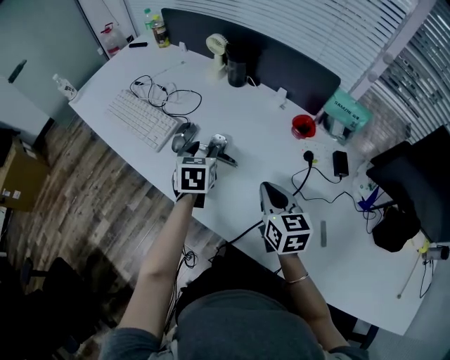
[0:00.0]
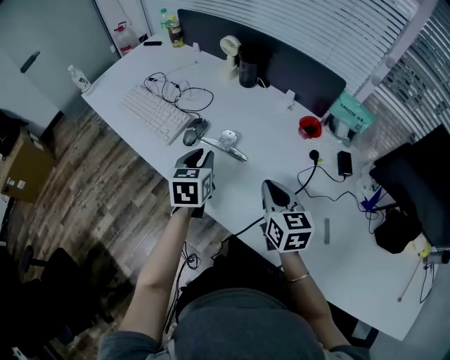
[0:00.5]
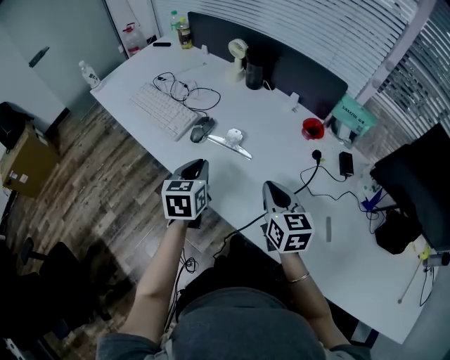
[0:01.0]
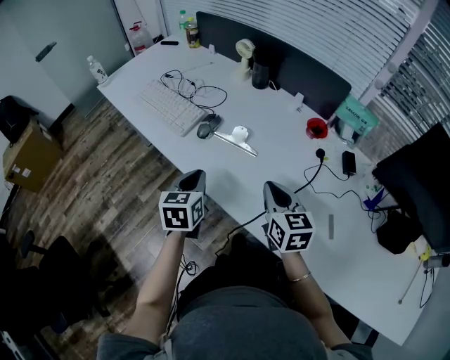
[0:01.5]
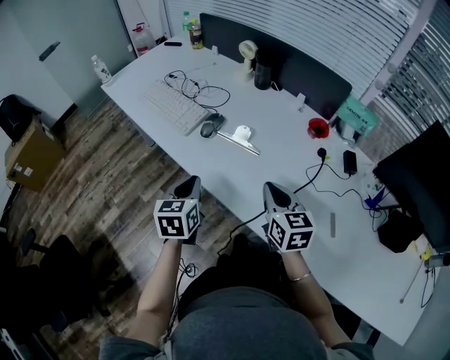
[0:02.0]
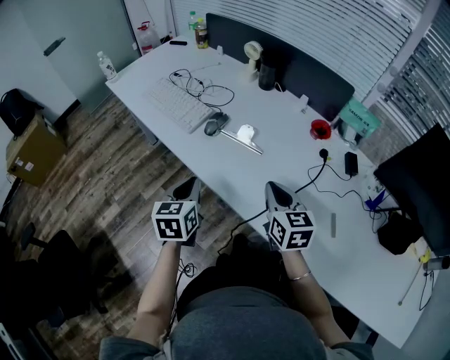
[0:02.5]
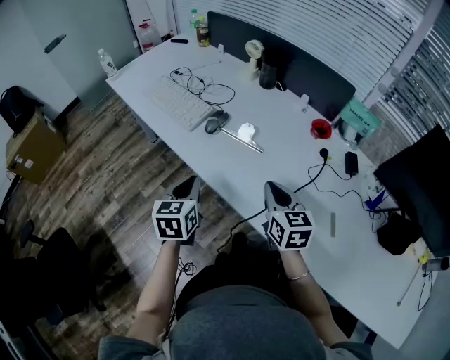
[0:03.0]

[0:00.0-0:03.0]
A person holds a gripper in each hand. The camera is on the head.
0:00.0 to 0:01.5: The right gripper is displaced backward by some 5 cm. Meanwhile the left gripper travels backward and to the left by about 20 cm, and closes its fingers.
0:01.5 to 0:03.0: The left gripper moves about 5 cm.

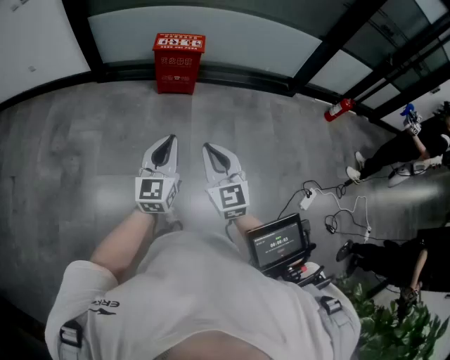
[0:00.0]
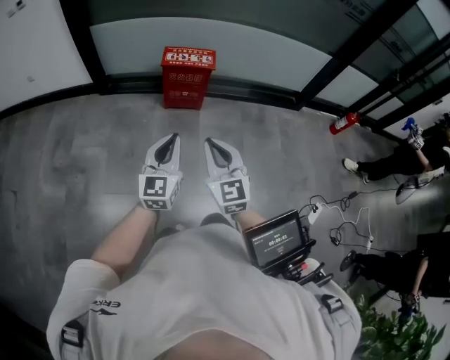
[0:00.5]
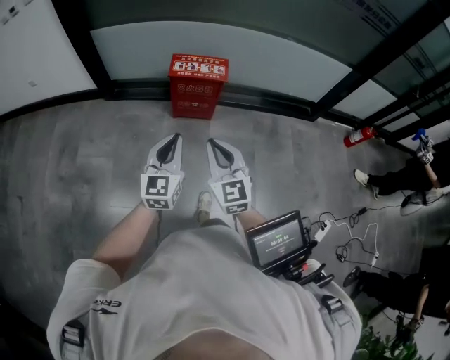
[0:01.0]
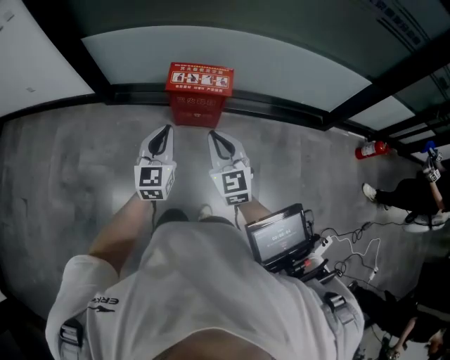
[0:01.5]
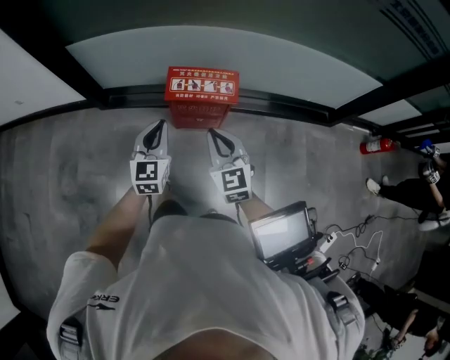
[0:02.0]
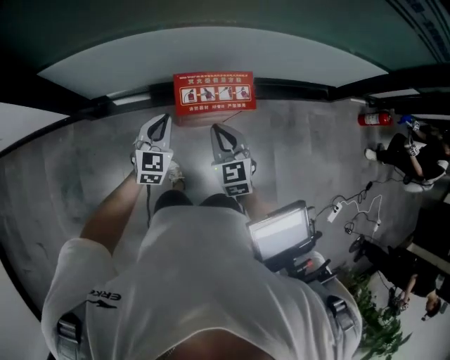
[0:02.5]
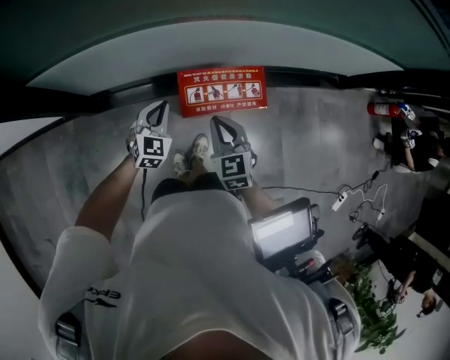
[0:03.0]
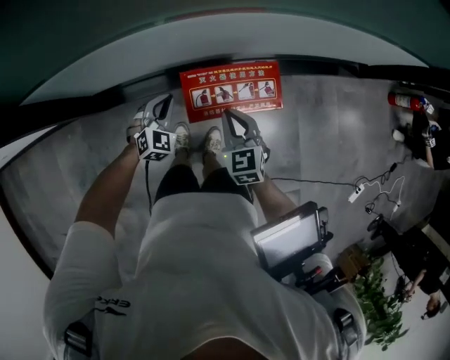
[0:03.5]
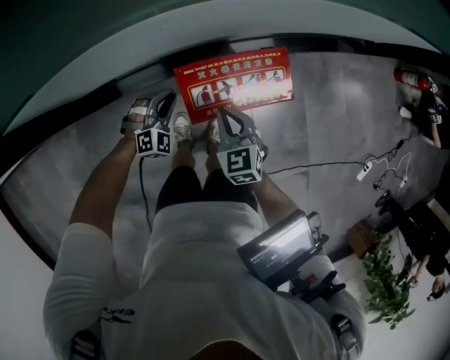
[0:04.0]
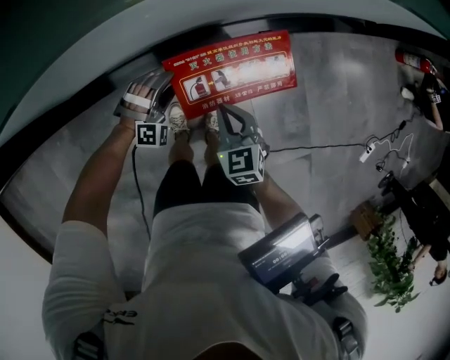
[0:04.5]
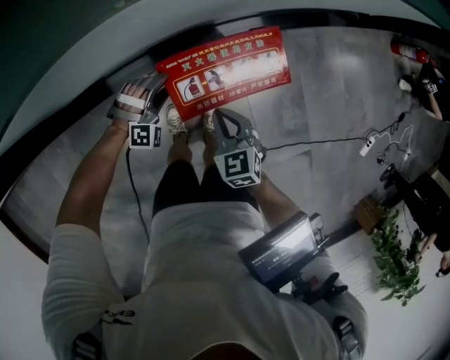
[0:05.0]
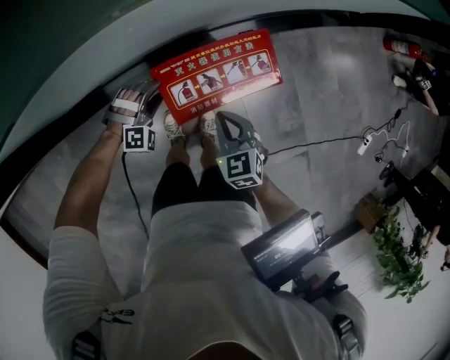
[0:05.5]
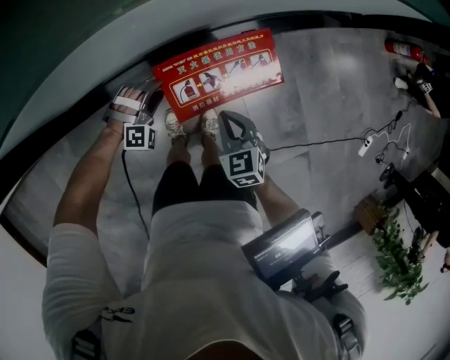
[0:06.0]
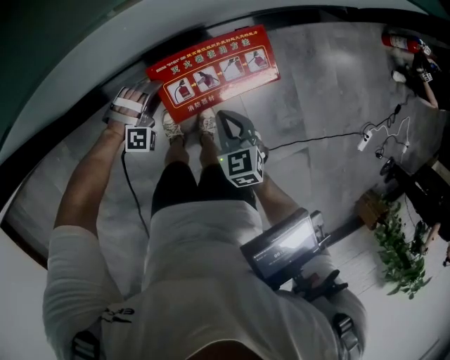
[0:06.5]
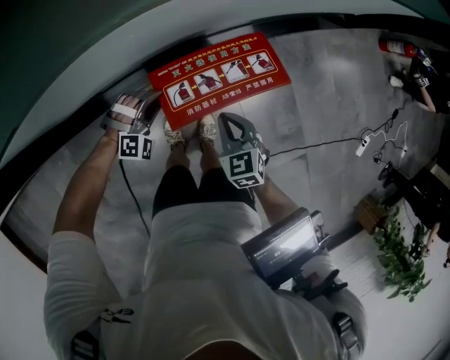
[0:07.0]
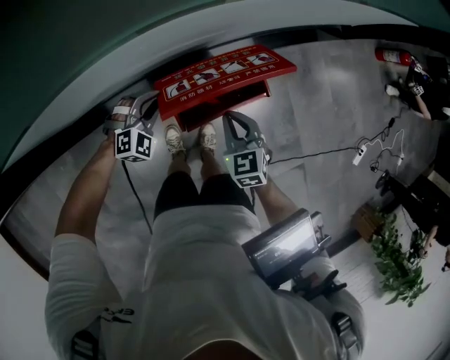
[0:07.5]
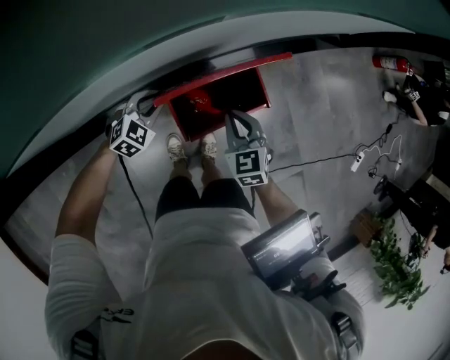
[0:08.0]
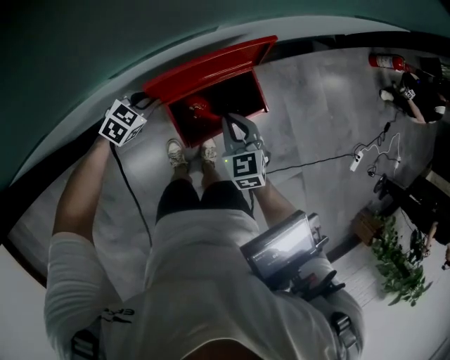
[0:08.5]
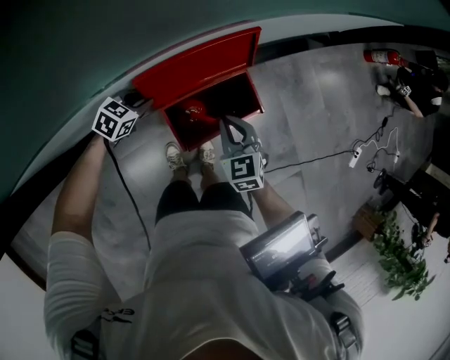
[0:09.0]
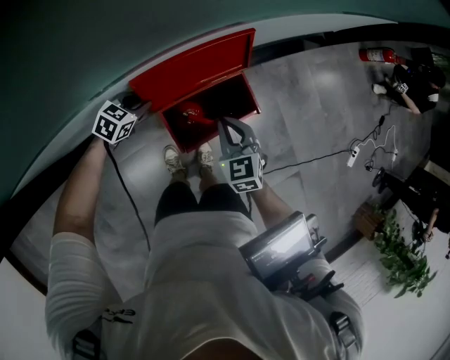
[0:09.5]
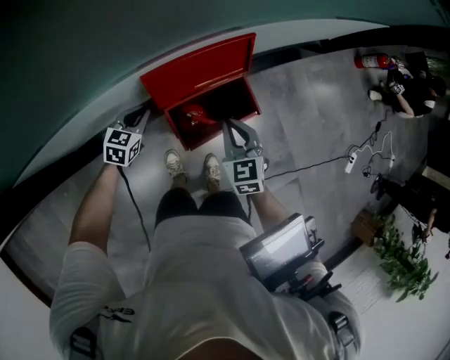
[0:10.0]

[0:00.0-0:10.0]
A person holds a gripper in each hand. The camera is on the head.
0:00.0 to 0:02.0: The two grippers travel together, forward, some 60 cm.
0:02.0 to 0:04.0: The left gripper goes roughly 40 cm forward and downward, and angles its fingers downward, by roughly 30 degrees, while the right gripper heads forward, downward and to the left, covering about 40 cm, and turns by some 30 degrees.
0:04.0 to 0:06.0: The left gripper turns by some 30 degrees, and opens. The right gripper moves approximately 5 cm.
0:06.0 to 0:08.0: The left gripper moves forward and upward, some 10 cm, rolls counterclockwise, seen from behind, by about 40 degrees, and closes its fingers; the right gripper moves forward, approximately 10 cm.
0:08.0 to 0:10.0: The right gripper travels upward by about 5 cm. The left gripper ends up some 5 cm from where it was, and changes its angle by roughly 30 degrees.

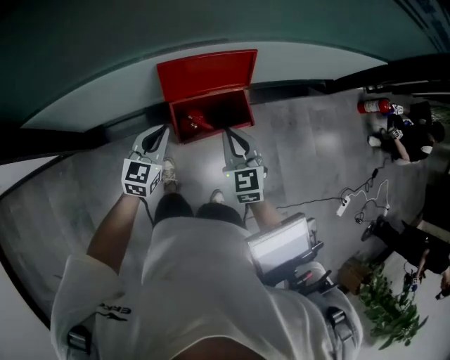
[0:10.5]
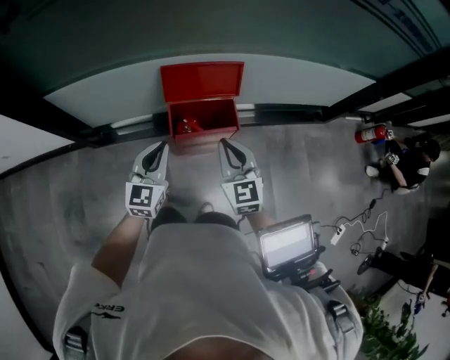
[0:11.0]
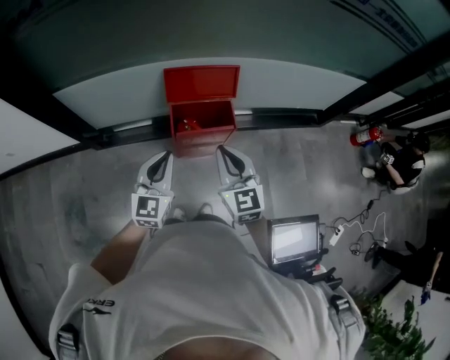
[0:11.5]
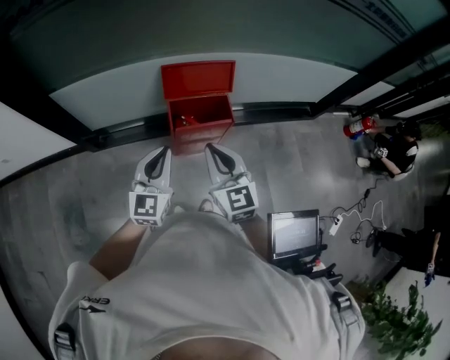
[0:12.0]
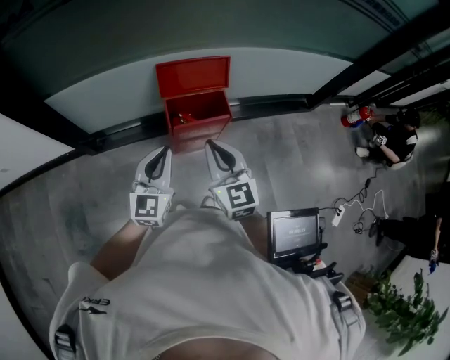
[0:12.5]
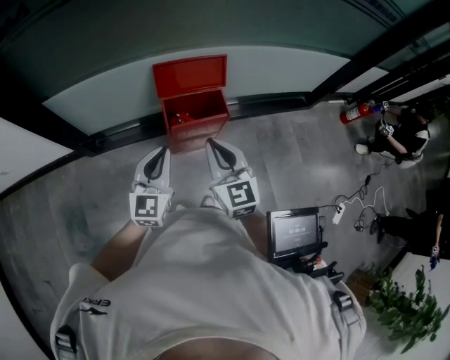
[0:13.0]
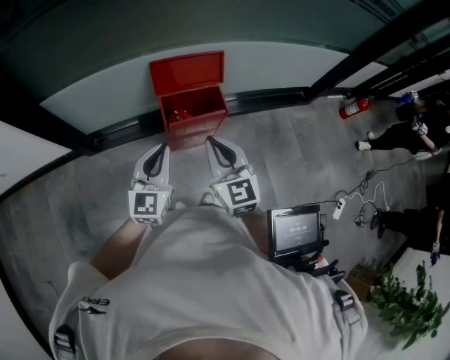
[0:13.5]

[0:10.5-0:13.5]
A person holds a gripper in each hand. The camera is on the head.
0:10.5 to 0:12.0: The two grippers go some 25 cm backward and upward. The left gripper swivels approximately 20 degrees; the right gripper swivels approximately 20 degrees.
0:12.0 to 0:13.5: The grippers stay close to where they were, moving slightly.

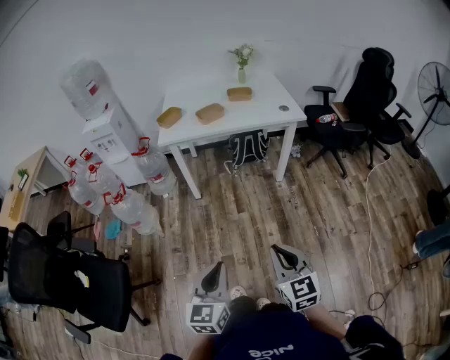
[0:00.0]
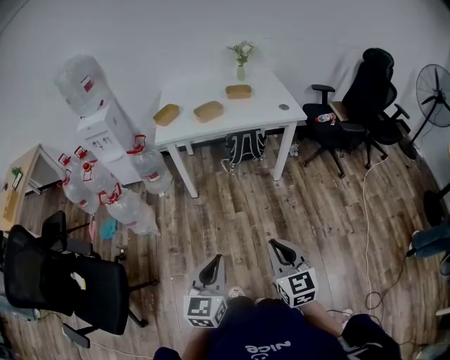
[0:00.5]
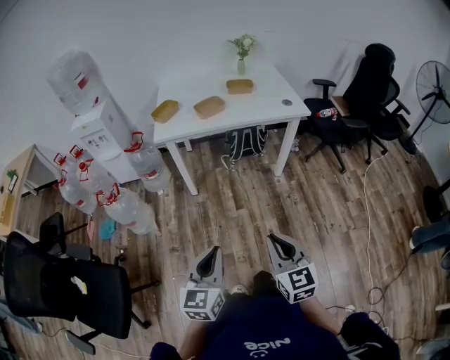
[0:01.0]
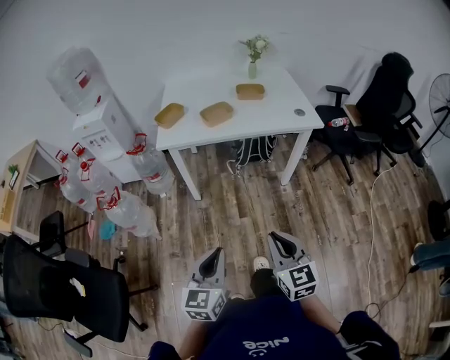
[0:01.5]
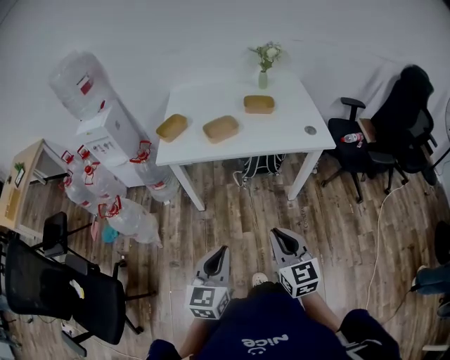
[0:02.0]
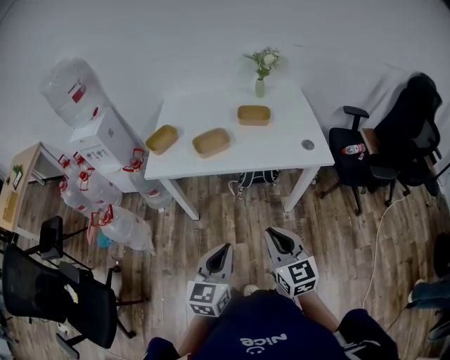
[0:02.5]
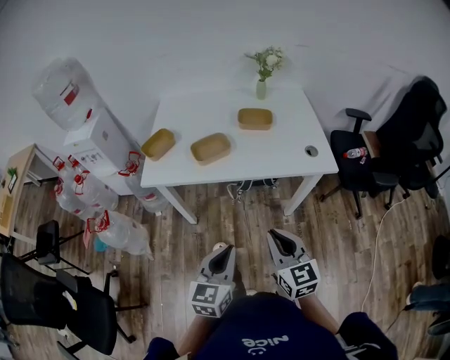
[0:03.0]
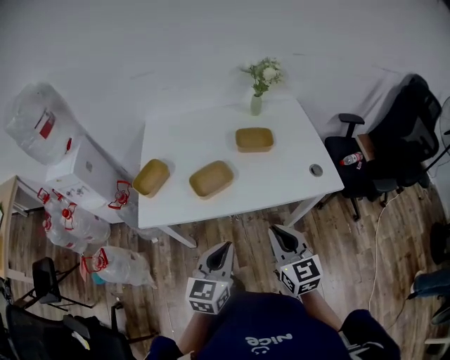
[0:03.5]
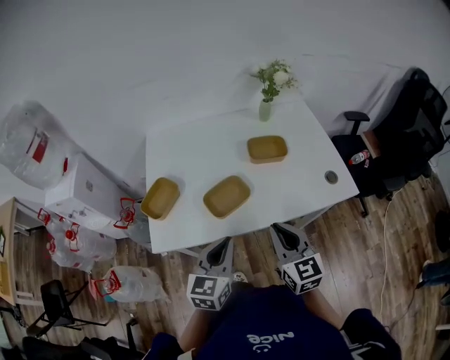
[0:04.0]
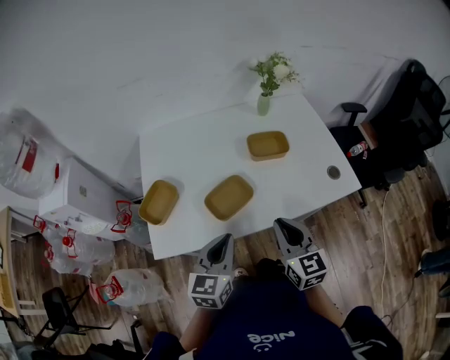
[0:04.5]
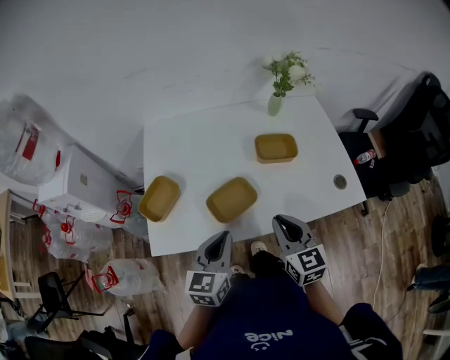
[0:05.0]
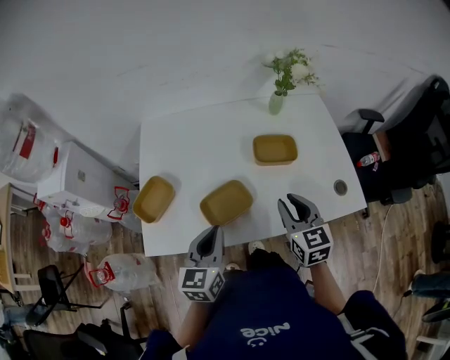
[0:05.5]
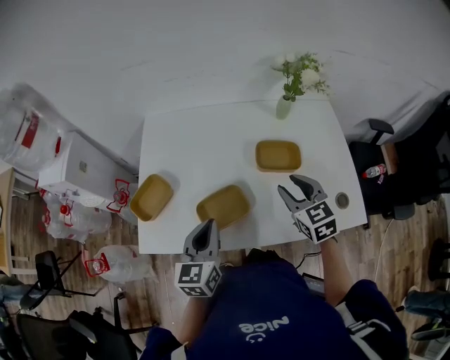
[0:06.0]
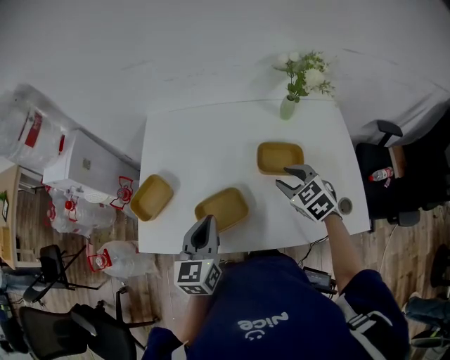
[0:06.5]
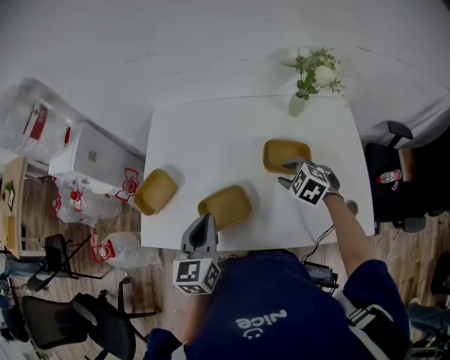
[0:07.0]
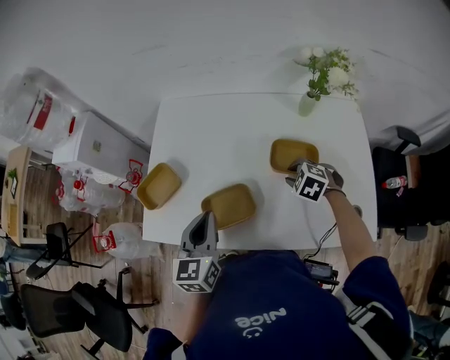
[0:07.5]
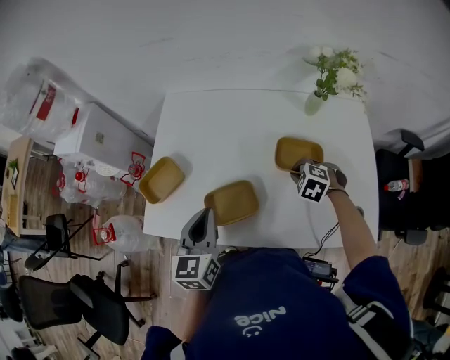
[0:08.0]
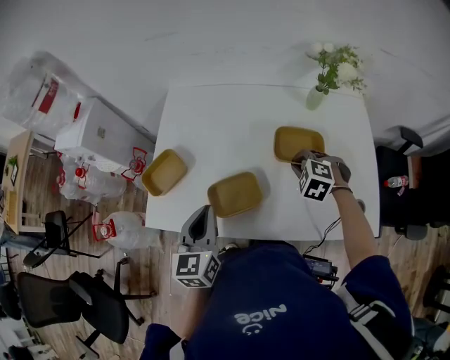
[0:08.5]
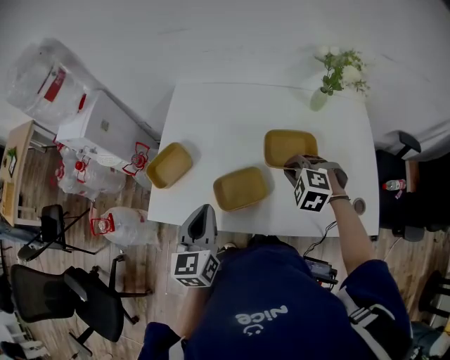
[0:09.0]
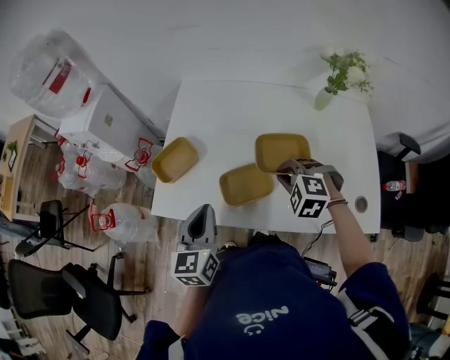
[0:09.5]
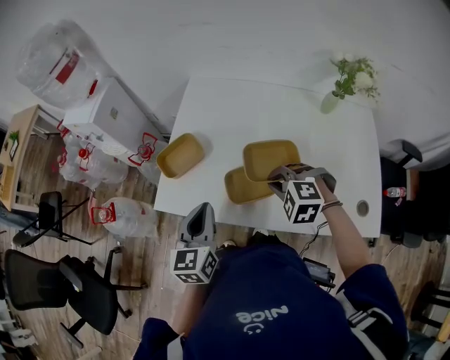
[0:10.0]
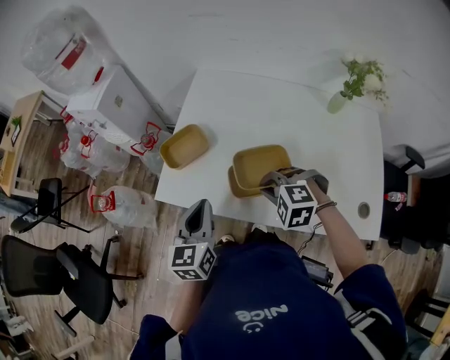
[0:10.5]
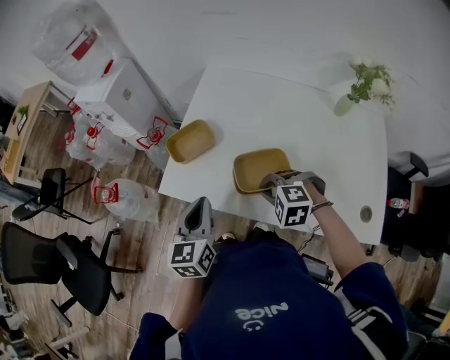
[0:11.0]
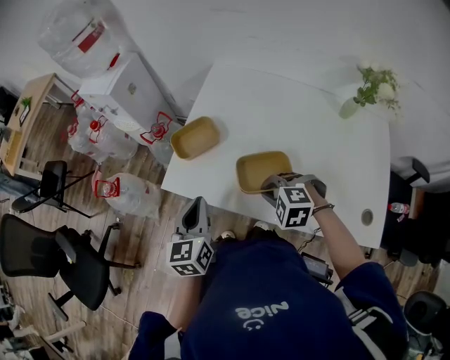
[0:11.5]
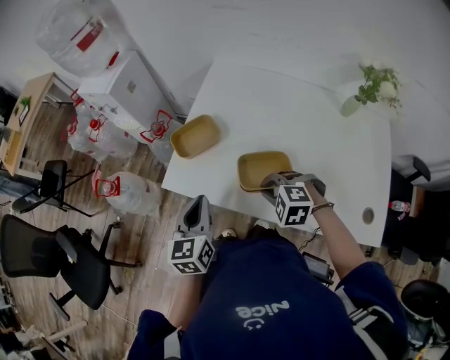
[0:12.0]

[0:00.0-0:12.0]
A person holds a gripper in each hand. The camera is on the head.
0:00.0 to 0:02.0: Both grippers travel together forward, approximately 35 cm.
0:02.0 to 0:04.0: The two grippers travel together, forward, about 40 cm.
0:04.0 to 0:06.0: The left gripper goes roughly 15 cm forward, while the right gripper is displaced forward by roughly 25 cm, rotates some 20 degrees, and opens up.
0:06.0 to 0:08.0: The right gripper heads downward and forward, covering about 15 cm, angles its fingers downward, by about 40 degrees, and closes.
0:08.0 to 0:10.0: The right gripper goes some 20 cm to the left and upward, and swivels roughly 30 degrees, while the left gripper moves to the left and backward, approximately 10 cm.
0:10.0 to 0:12.0: The grippers both shift to the left by roughly 5 cm.
